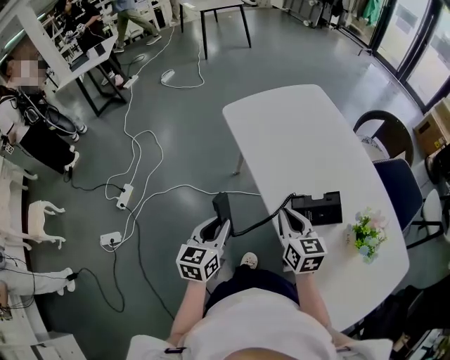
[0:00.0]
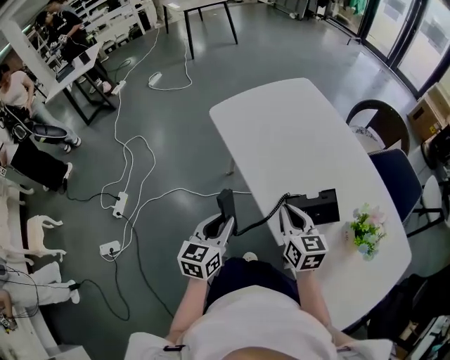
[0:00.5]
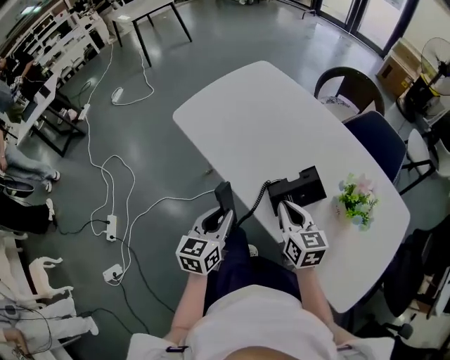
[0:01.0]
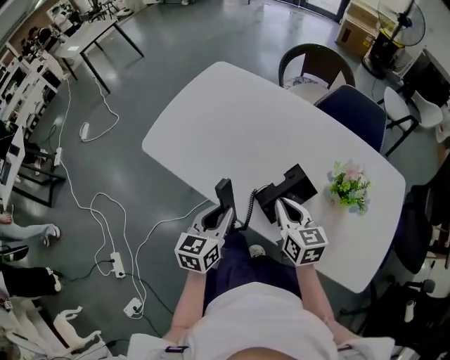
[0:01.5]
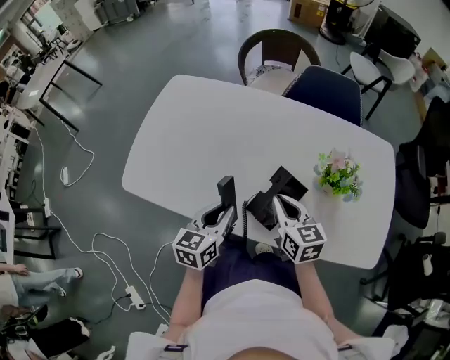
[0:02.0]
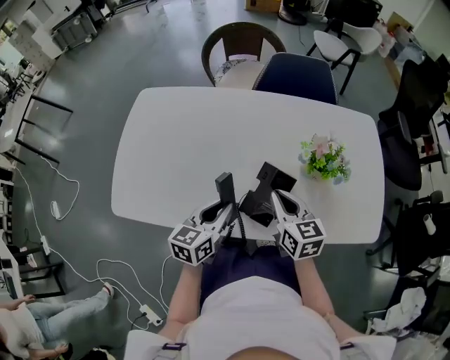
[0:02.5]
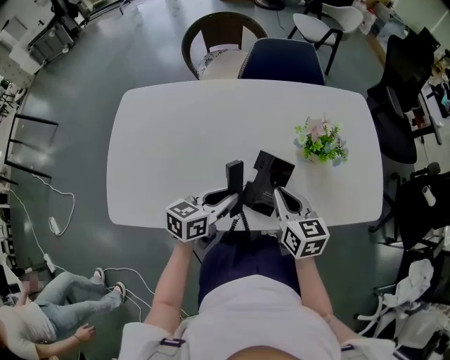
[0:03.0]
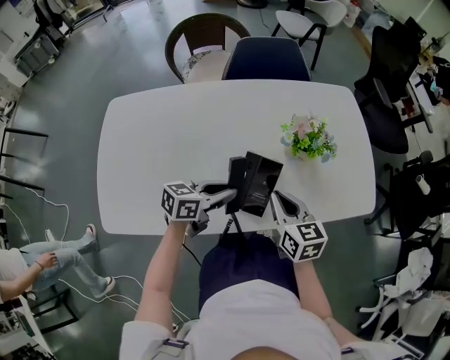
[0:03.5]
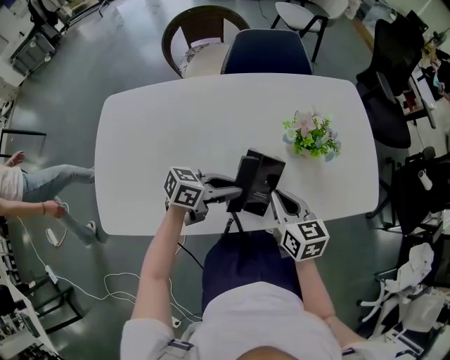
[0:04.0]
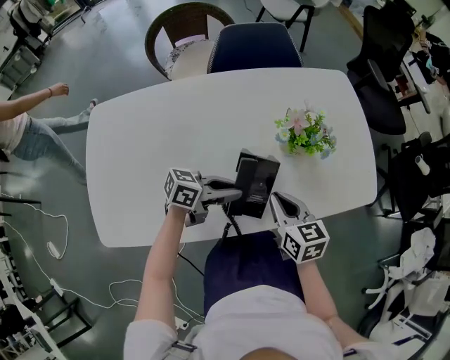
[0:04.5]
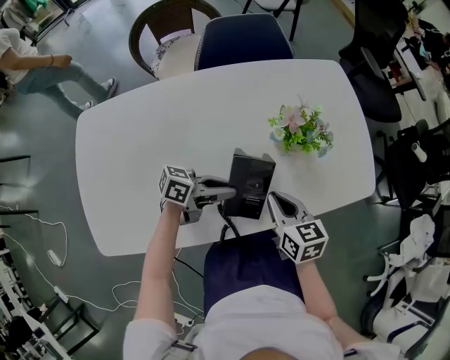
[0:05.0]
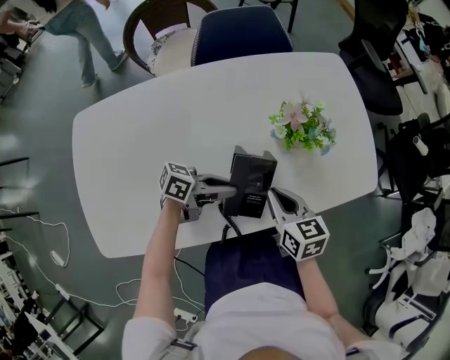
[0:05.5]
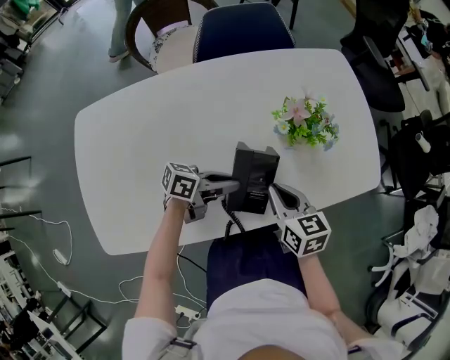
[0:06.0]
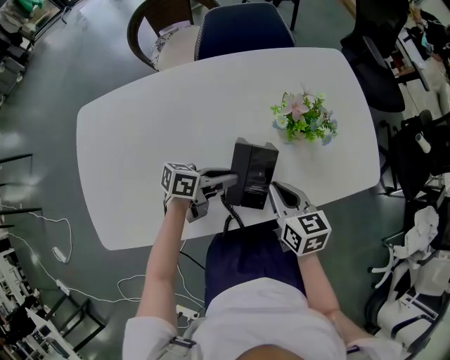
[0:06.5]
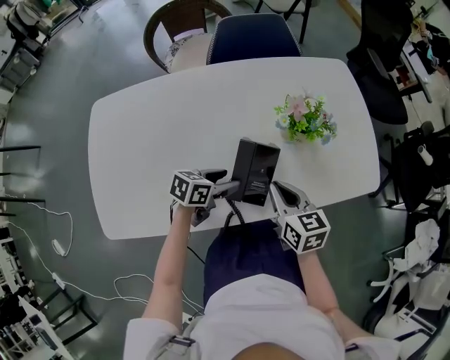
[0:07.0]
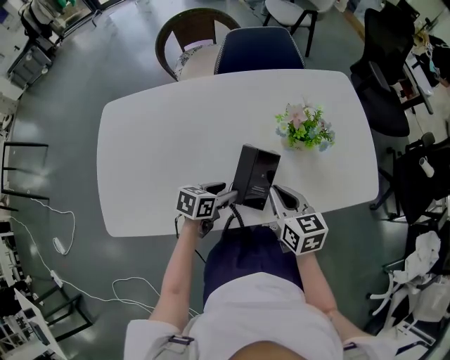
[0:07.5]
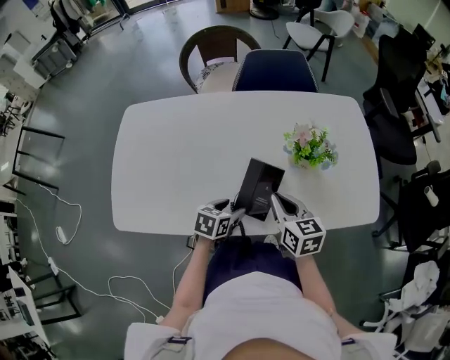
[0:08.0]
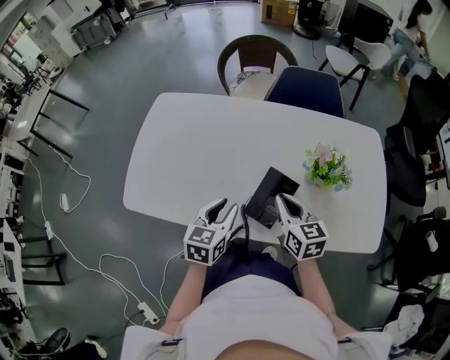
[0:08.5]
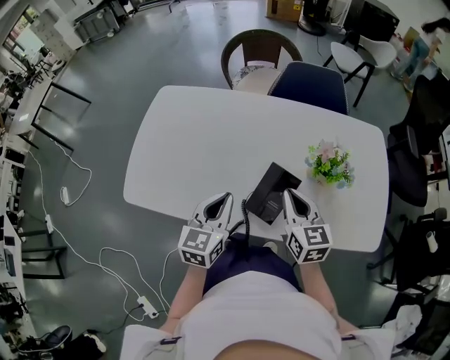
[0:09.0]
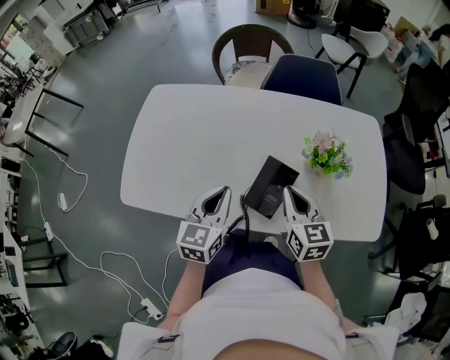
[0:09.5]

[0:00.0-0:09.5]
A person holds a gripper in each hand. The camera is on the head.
0:00.0 to 0:02.0: The right gripper moves roughly 15 cm, and rotates roughly 40 degrees. The left gripper shifts by approximately 25 cm, and turns by about 60 degrees.
0:02.0 to 0:04.0: The right gripper ends up approximately 5 cm from where it was, and rotates some 20 degrees. Meanwhile the left gripper changes place by roughly 10 cm, and turns by approximately 70 degrees.
0:04.0 to 0:05.5: The left gripper turns by about 20 degrees.
0:05.5 to 0:07.5: The left gripper ends up approximately 5 cm from where it was, tilts its fingers about 40 degrees downward, and opens its fingers.
0:07.5 to 0:09.5: The left gripper goes some 20 cm upward, swivels roughly 50 degrees, and closes up, while the right gripper goes about 5 cm upward.

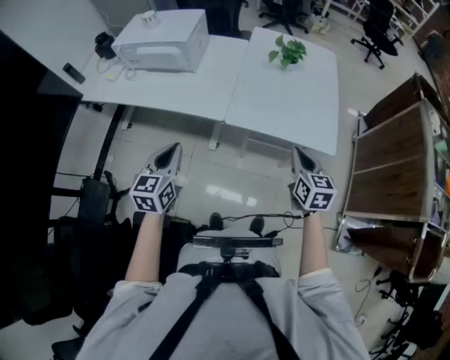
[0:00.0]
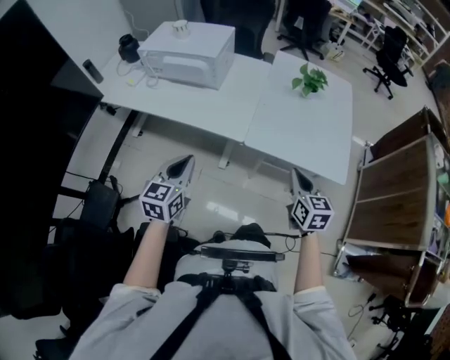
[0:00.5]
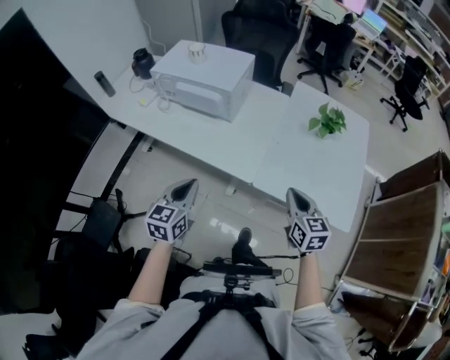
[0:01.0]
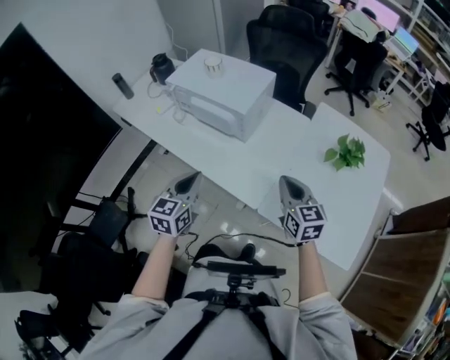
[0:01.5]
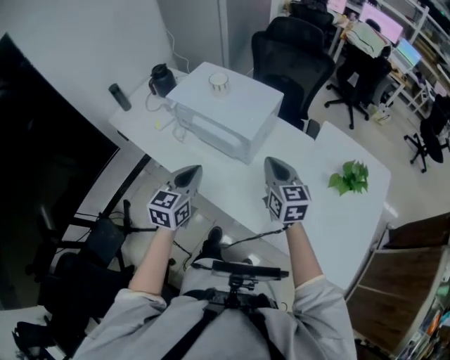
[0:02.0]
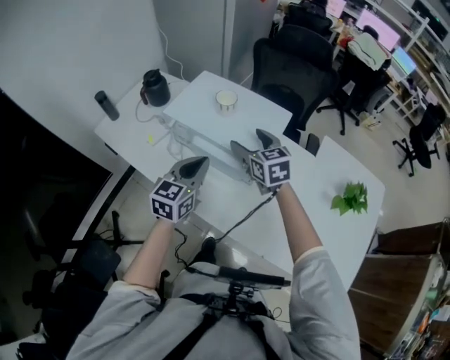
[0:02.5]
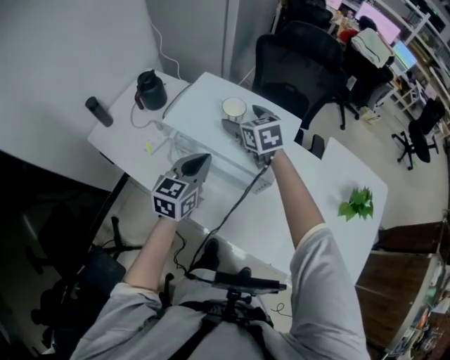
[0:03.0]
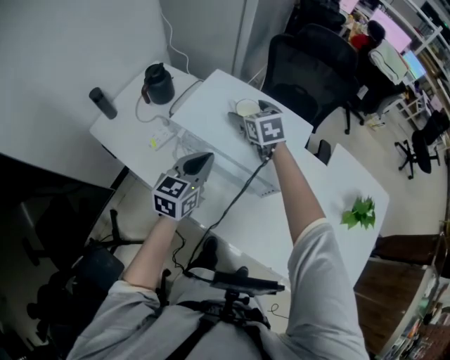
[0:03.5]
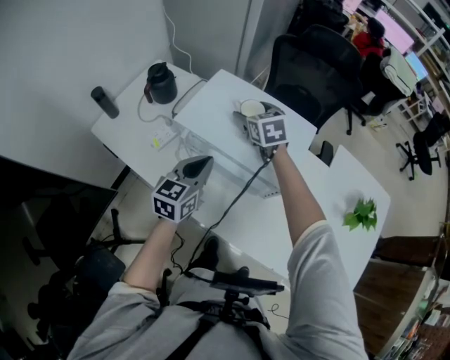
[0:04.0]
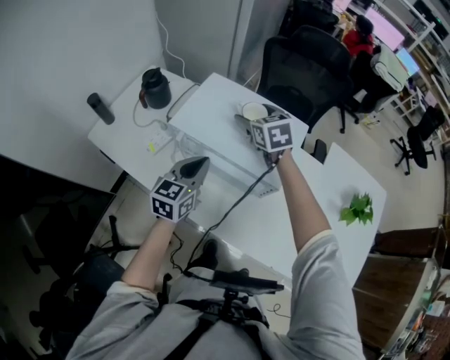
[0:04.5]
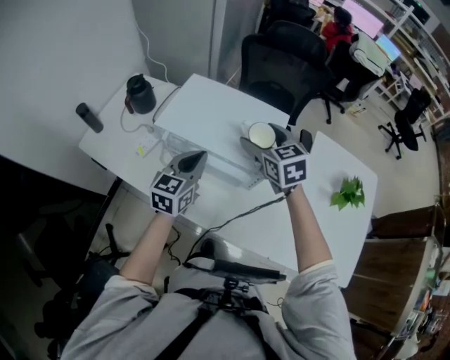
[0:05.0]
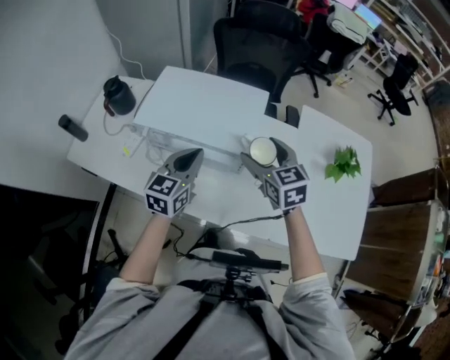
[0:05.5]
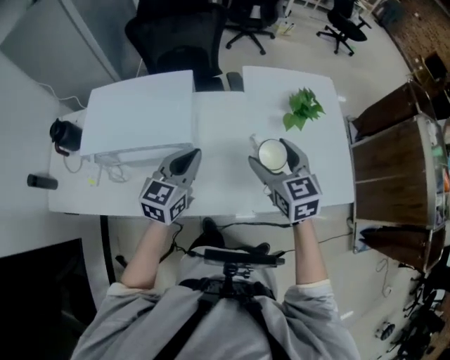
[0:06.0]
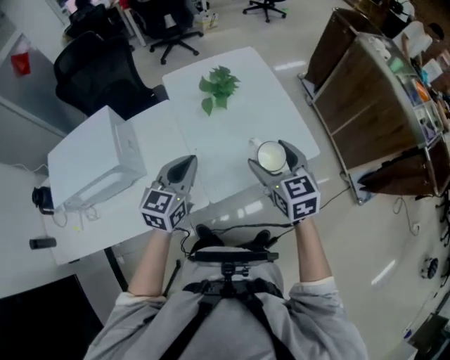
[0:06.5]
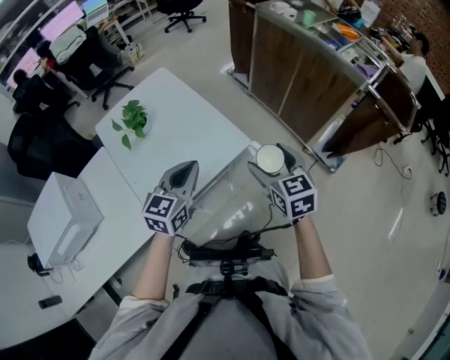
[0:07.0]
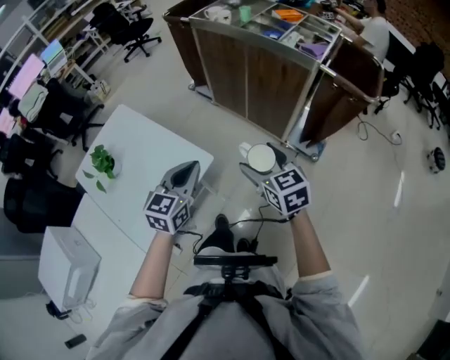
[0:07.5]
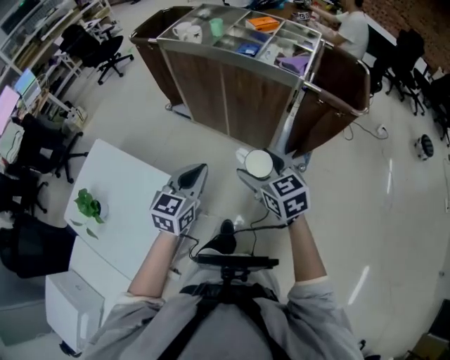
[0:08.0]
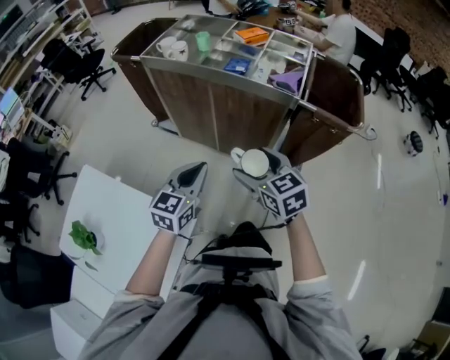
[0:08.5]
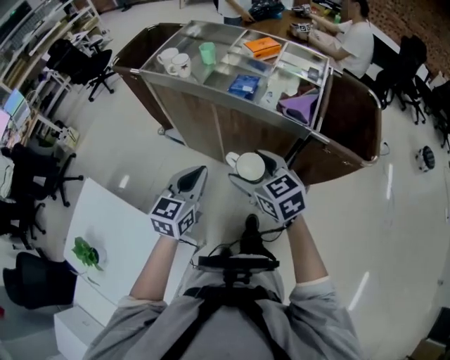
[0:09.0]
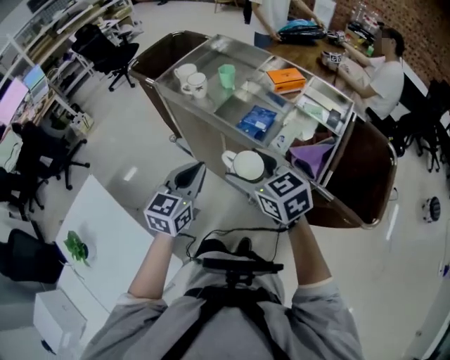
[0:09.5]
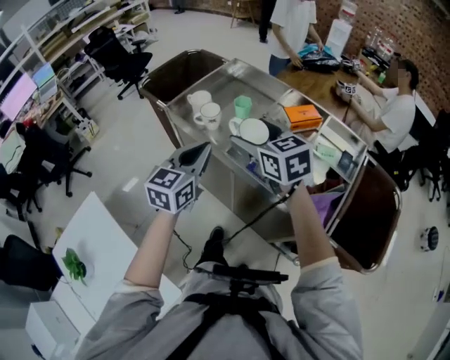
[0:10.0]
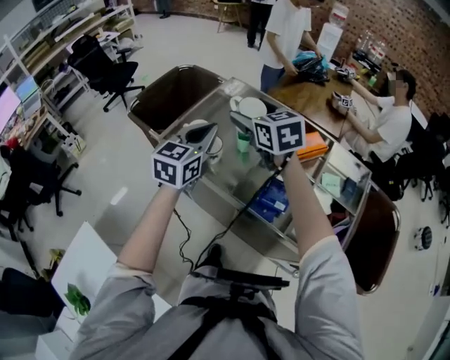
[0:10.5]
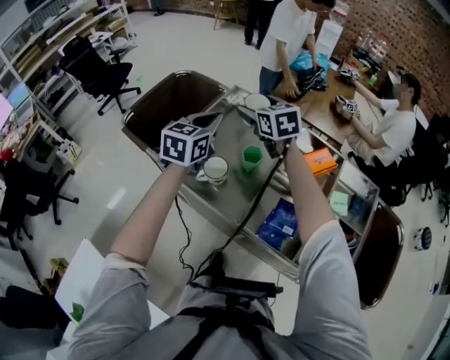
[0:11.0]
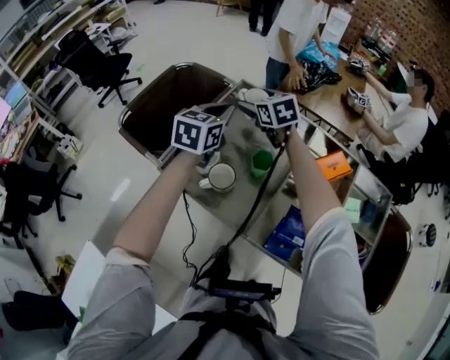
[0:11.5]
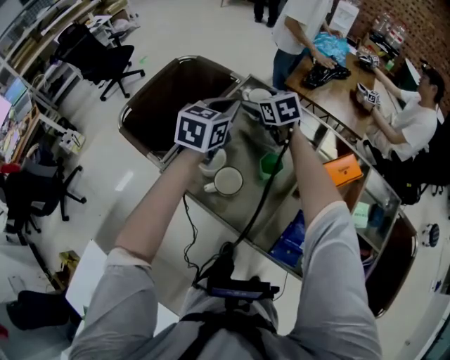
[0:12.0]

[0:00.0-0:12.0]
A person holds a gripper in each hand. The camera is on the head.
0:00.0 to 0:02.0: The right gripper shifts approximately 50 cm forward and to the left, and rotates about 30 degrees; the left gripper moves forward, roughly 35 cm.
0:02.0 to 0:04.0: The left gripper is displaced forward and to the left by roughly 25 cm. Meanwhile the right gripper moves forward and to the left, approximately 40 cm, changes its angle by approximately 20 degrees, and opens up.
0:04.0 to 0:06.0: The right gripper changes place by roughly 50 cm, and swivels about 30 degrees; the left gripper moves some 25 cm, and turns by about 30 degrees.
0:06.0 to 0:08.0: The pair of grippers is taken roughly 80 cm. The left gripper swivels some 60 degrees. Meanwhile the right gripper changes its angle by roughly 60 degrees.
0:08.0 to 0:10.0: The two grippers travel together, forward, approximately 50 cm.
0:10.0 to 0:12.0: Both grippers are carried forward, approximately 50 cm.

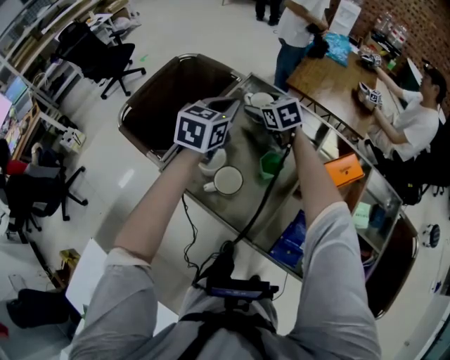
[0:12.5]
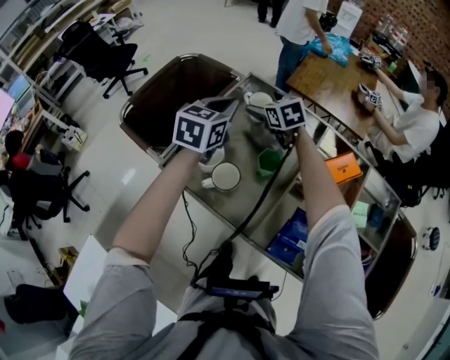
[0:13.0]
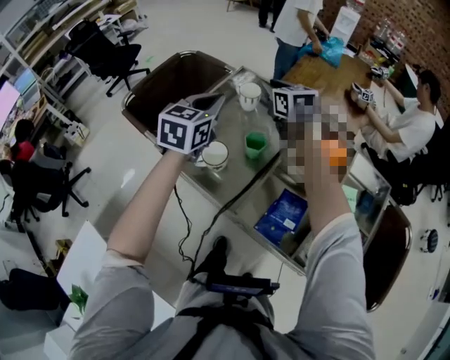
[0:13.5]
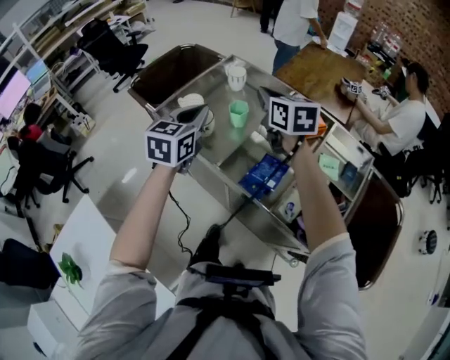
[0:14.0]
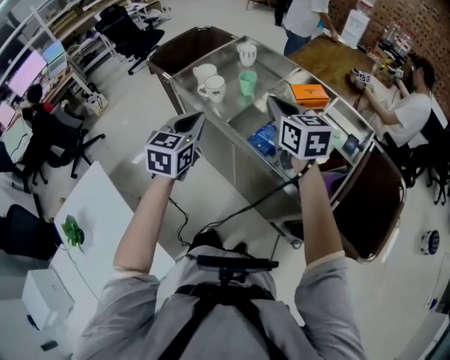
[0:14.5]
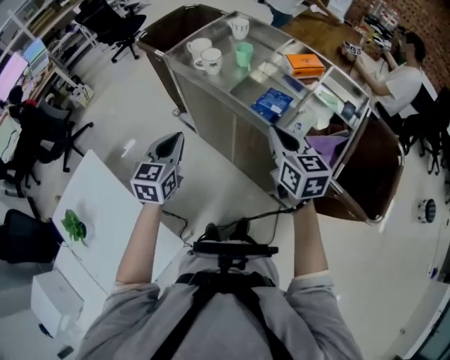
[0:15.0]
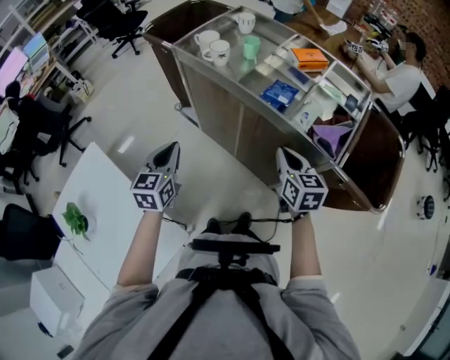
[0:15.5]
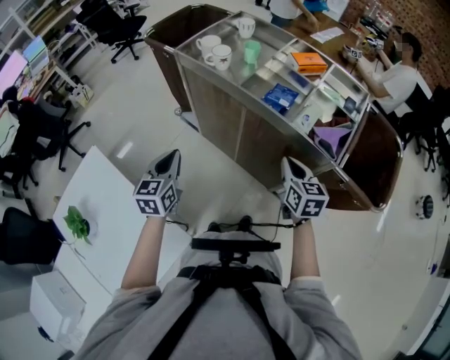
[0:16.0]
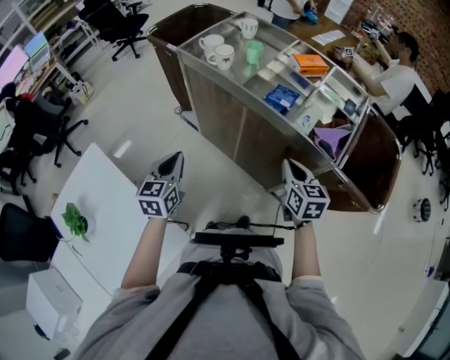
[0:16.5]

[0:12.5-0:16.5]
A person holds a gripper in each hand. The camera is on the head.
0:12.5 to 0:14.5: Both grippers are carried backward, roughly 40 cm. The right gripper changes its angle by roughly 20 degrees, and closes.
0:14.5 to 0:16.5: The right gripper is displaced backward and downward by some 30 cm, while the left gripper is displaced backward, to the left and downward by about 25 cm.

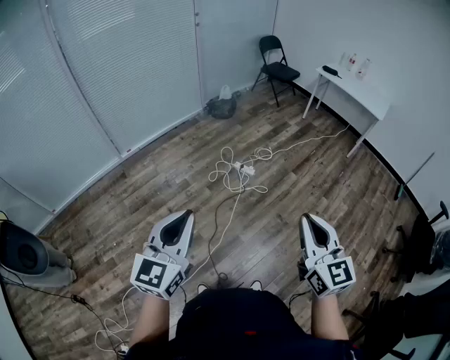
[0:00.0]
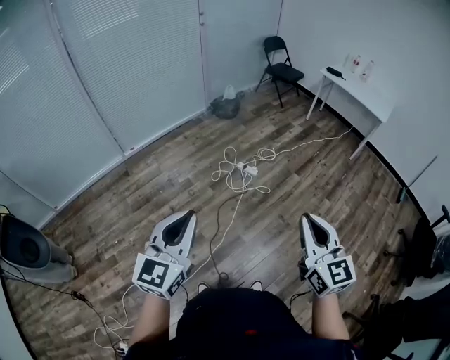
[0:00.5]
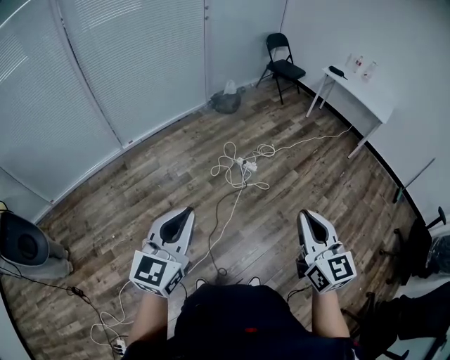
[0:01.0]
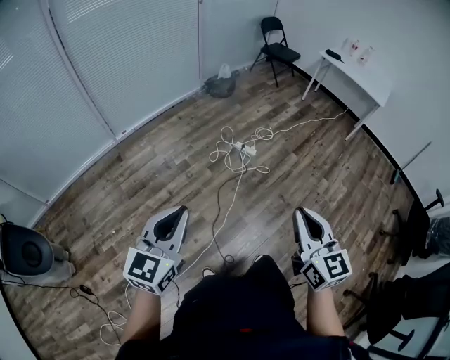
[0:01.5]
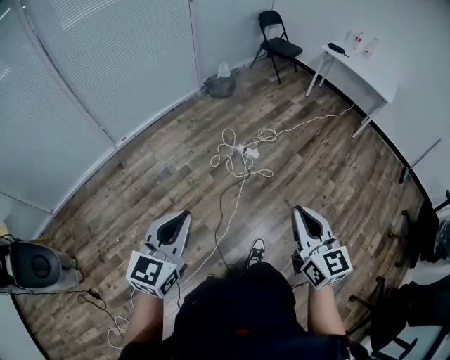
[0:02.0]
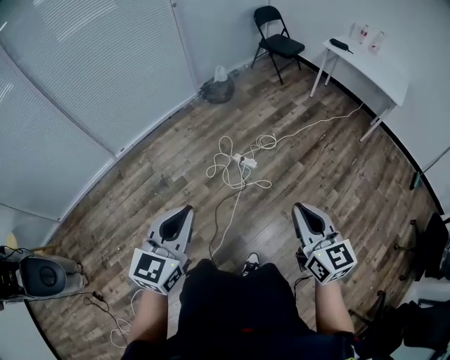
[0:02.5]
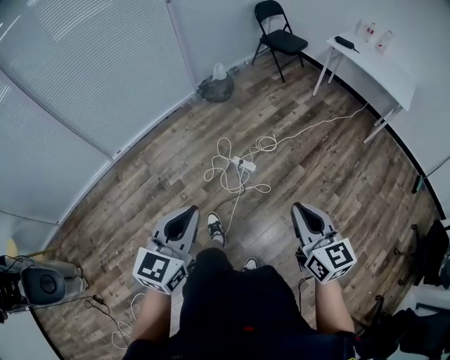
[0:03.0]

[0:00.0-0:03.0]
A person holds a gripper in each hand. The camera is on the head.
0:00.0 to 0:01.5: The two grippers go roughly 10 cm to the left.
0:01.5 to 0:03.0: The two grippers travel together, forward and to the right, about 40 cm.
